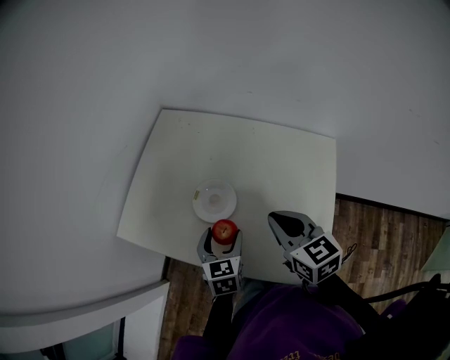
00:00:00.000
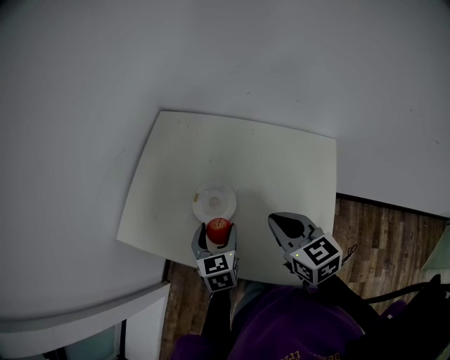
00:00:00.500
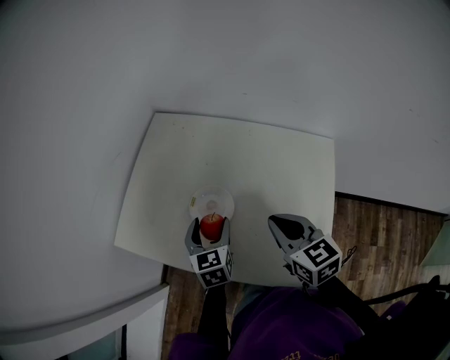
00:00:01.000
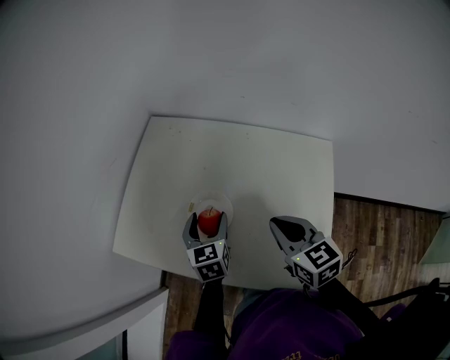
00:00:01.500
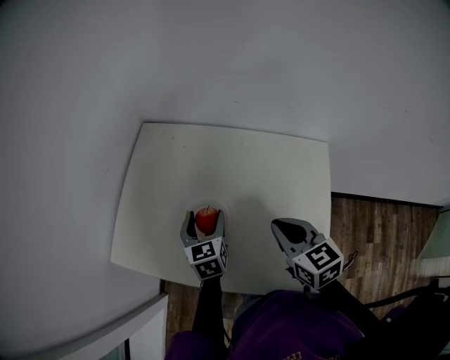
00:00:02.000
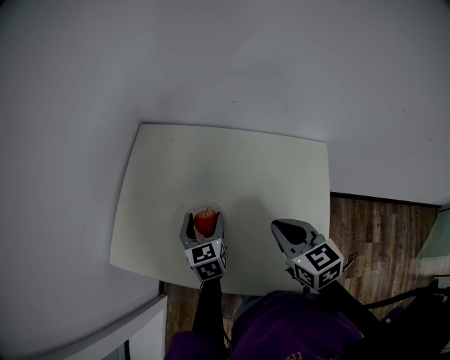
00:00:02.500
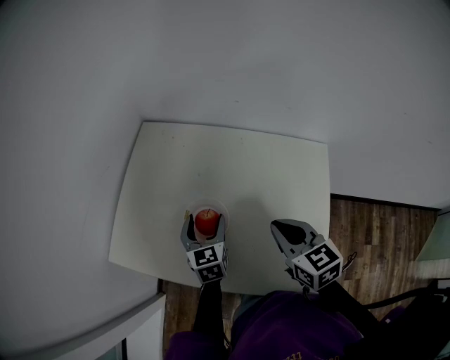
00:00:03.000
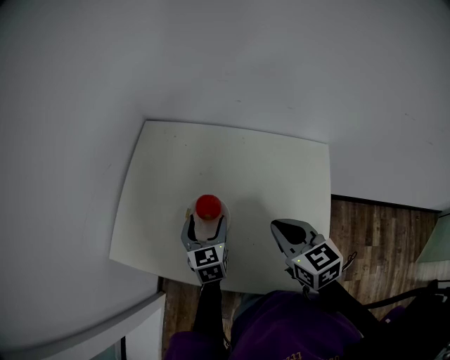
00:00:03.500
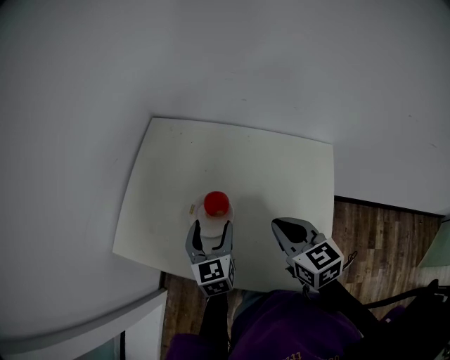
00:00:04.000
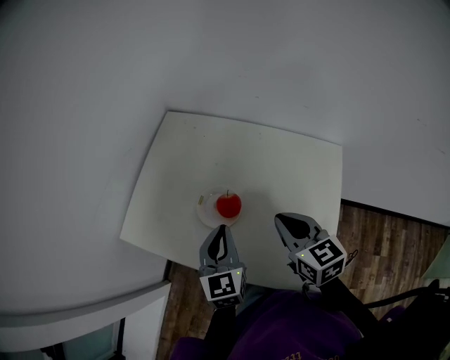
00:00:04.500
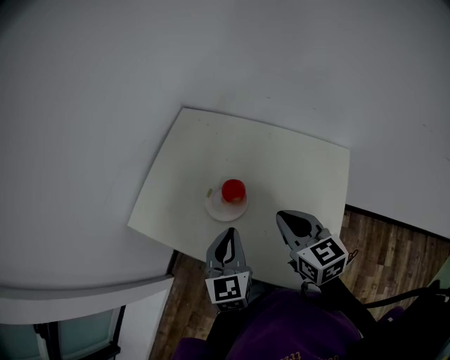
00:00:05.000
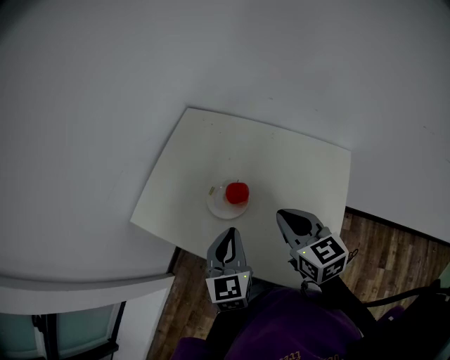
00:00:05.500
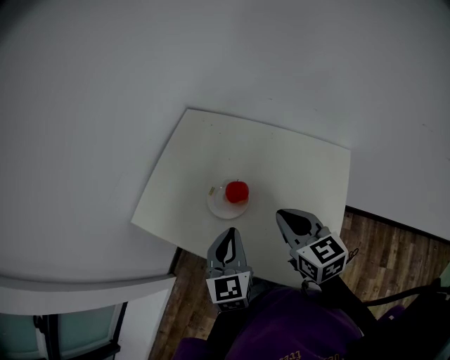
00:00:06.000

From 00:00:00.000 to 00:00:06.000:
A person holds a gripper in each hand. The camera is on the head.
From 00:00:00.000 to 00:00:02.000: The left gripper moves forward, roughly 10 cm.
From 00:00:02.000 to 00:00:04.000: The left gripper is displaced backward by about 5 cm.
From 00:00:04.000 to 00:00:06.000: The left gripper goes roughly 10 cm backward and upward, and closes its fingers.

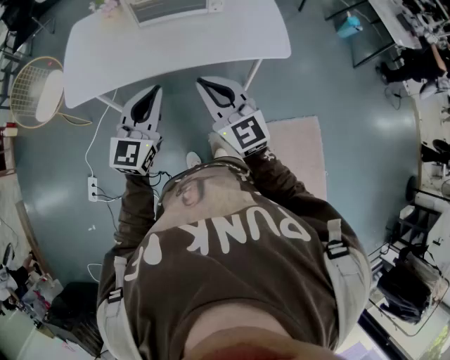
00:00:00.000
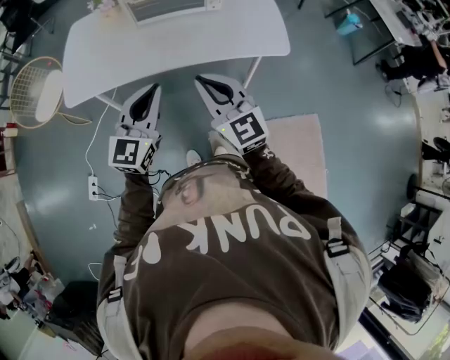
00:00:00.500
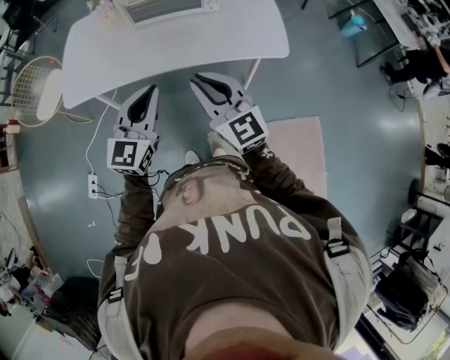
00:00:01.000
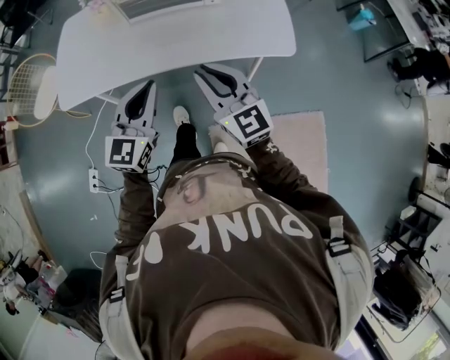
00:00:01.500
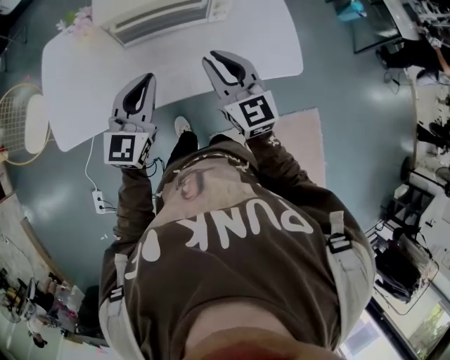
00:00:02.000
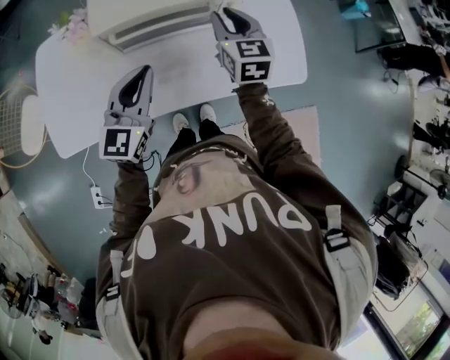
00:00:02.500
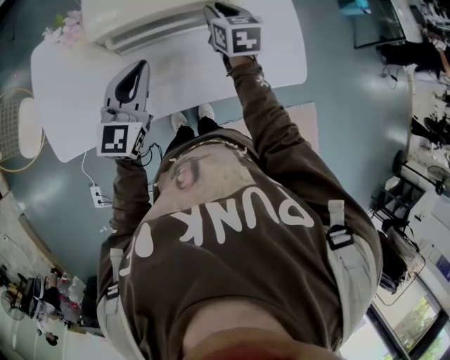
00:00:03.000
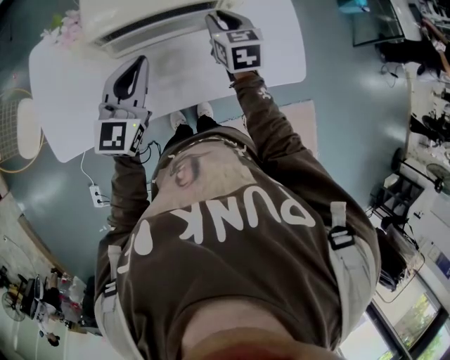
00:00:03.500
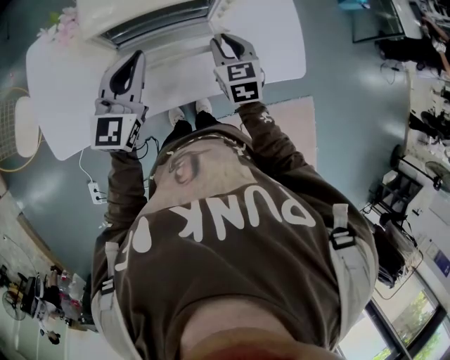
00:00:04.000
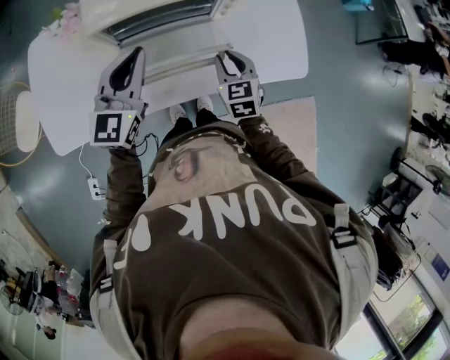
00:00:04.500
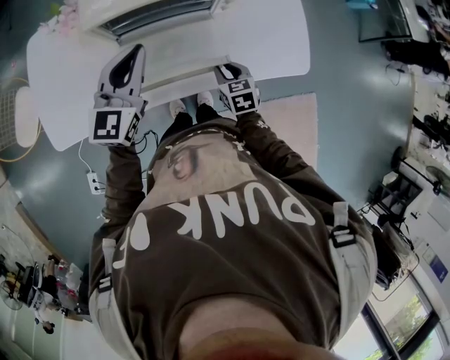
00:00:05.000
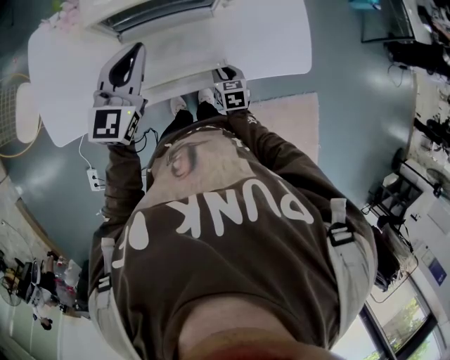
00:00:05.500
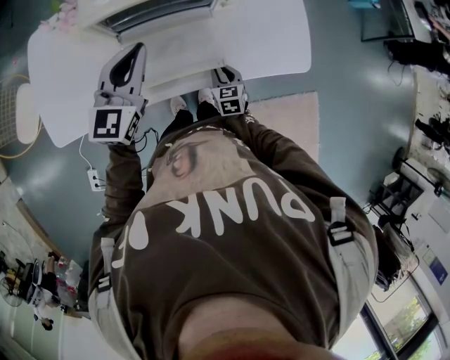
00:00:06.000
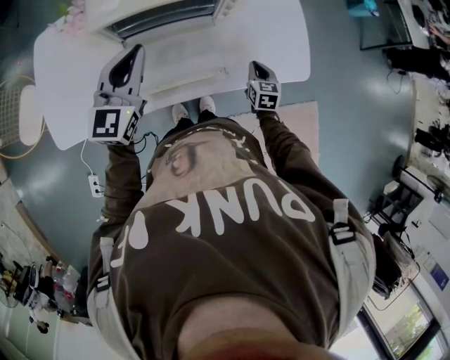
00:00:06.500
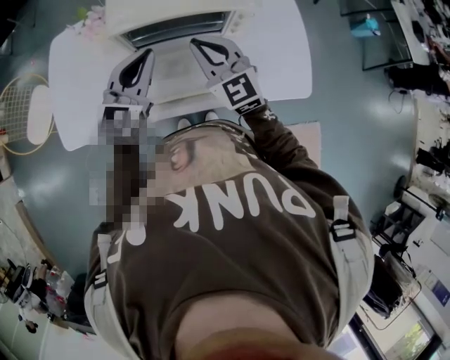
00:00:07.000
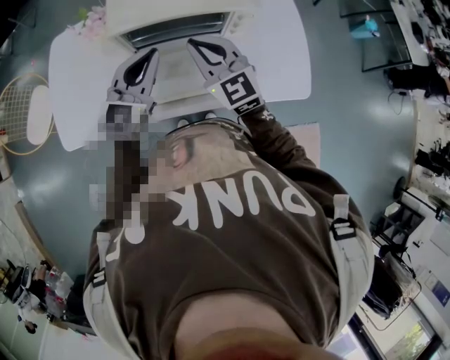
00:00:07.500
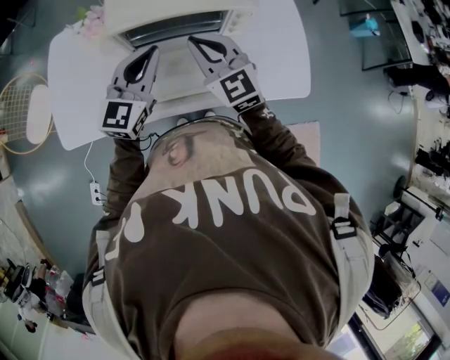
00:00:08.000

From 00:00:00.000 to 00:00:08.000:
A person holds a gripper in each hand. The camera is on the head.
From 00:00:00.000 to 00:00:02.000: The two grippers go approximately 25 cm forward.
From 00:00:02.000 to 00:00:04.000: The left gripper heads forward, covering some 10 cm. The right gripper heads forward and downward, covering roughly 20 cm, and changes its angle by about 30 degrees.
From 00:00:04.000 to 00:00:06.000: The right gripper shifts approximately 25 cm downward and backward.
From 00:00:06.000 to 00:00:08.000: The right gripper moves upward, approximately 30 cm, and tips its fingers upward by approximately 30 degrees.

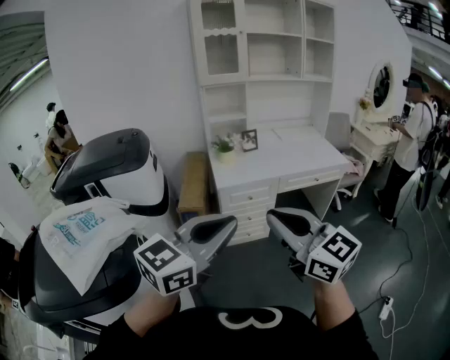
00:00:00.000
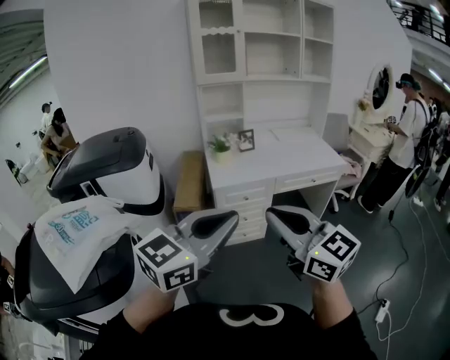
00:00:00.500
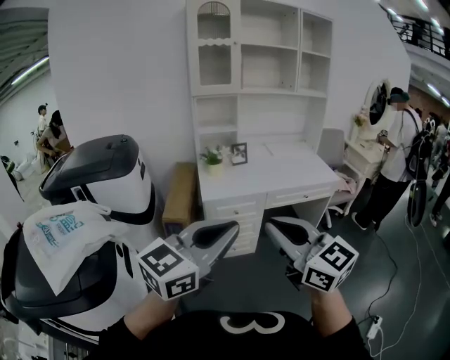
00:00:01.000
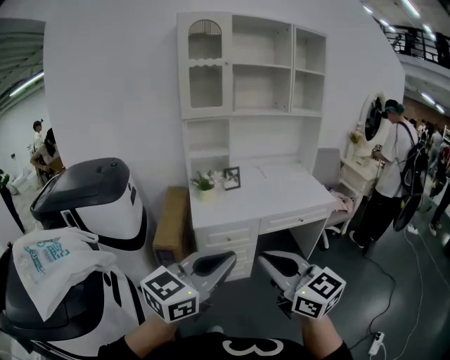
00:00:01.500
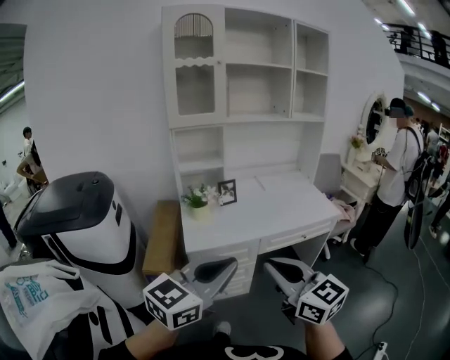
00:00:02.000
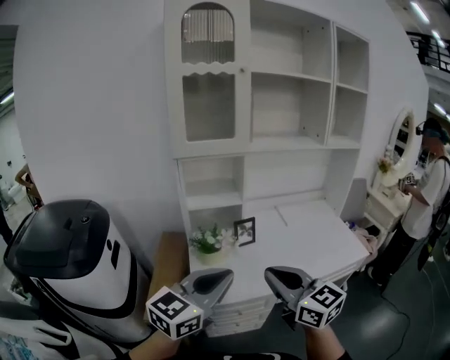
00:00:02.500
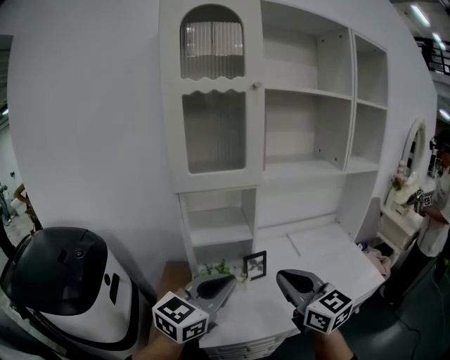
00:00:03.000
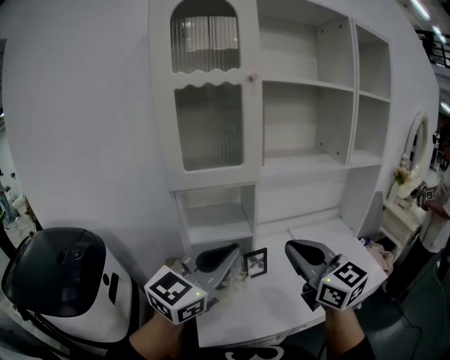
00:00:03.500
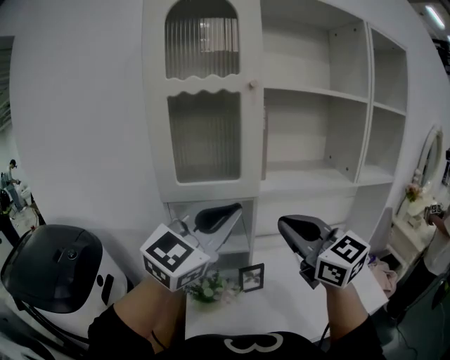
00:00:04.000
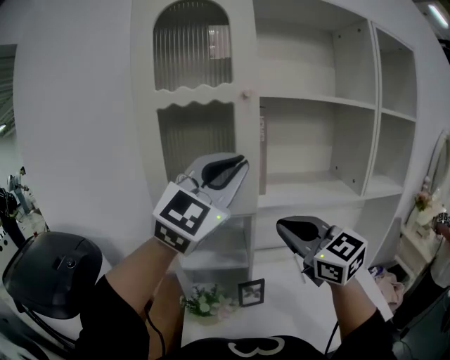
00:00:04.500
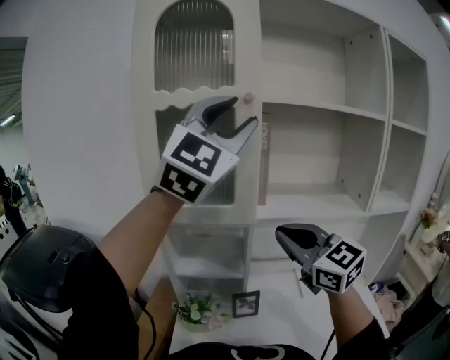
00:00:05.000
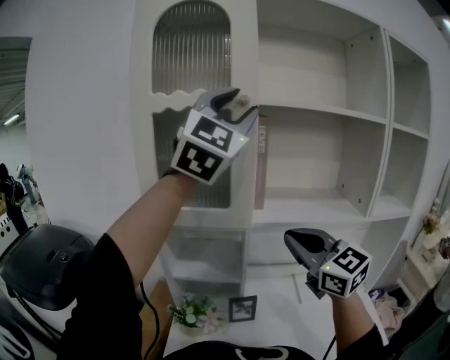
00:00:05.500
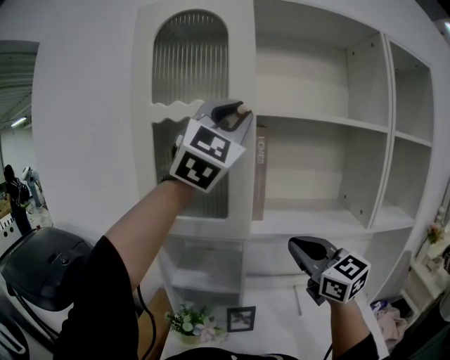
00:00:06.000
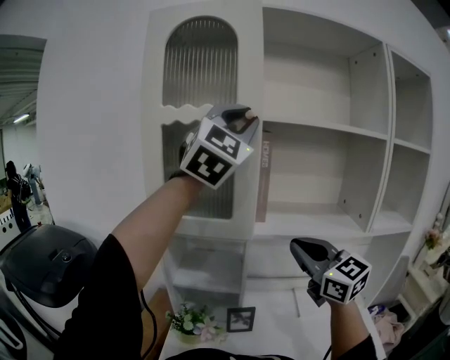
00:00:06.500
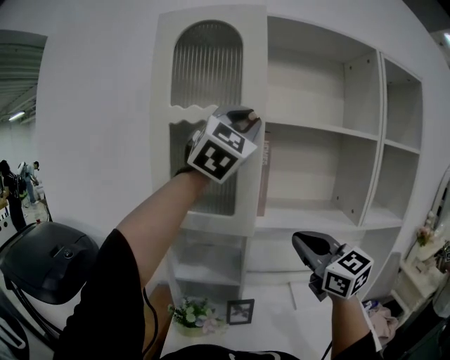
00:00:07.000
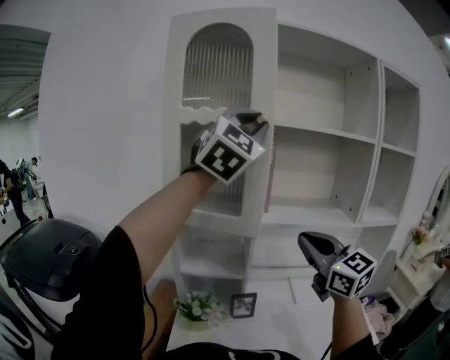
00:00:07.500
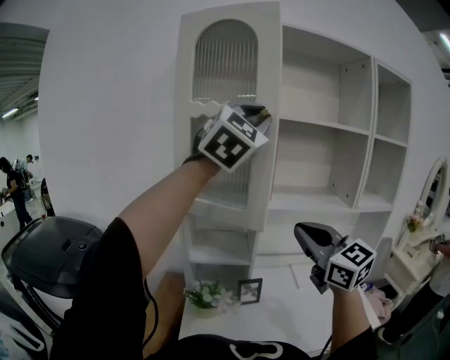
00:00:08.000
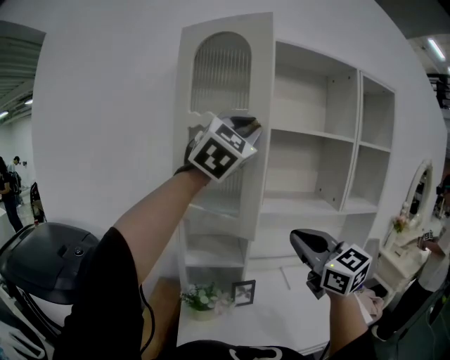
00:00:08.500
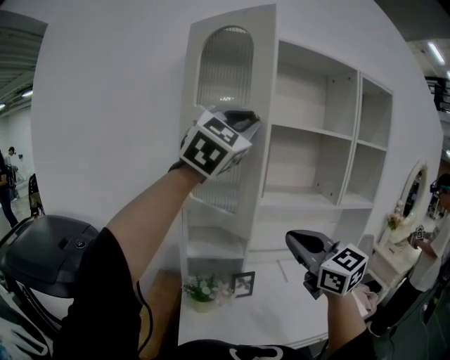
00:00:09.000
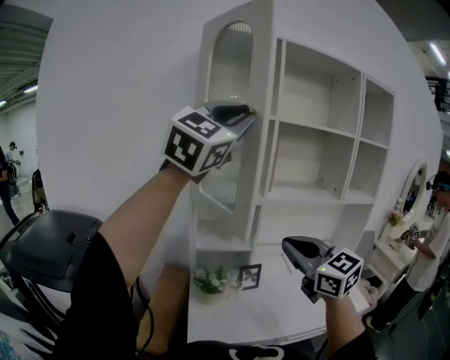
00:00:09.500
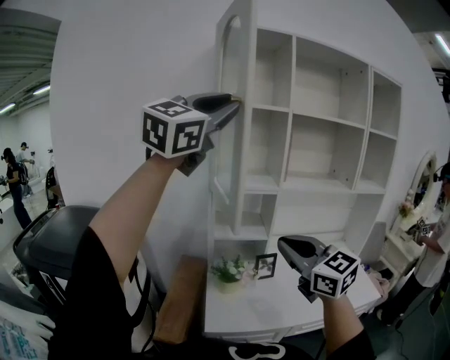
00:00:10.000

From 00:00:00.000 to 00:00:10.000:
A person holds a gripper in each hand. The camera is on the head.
From 00:00:00.000 to 00:00:02.000: Both grippers move forward, approximately 25 cm.
From 00:00:02.000 to 00:00:04.000: The two grippers travel together, forward, some 60 cm. The left gripper rotates roughly 30 degrees.
From 00:00:04.000 to 00:00:06.000: The right gripper heads forward and to the right, covering about 15 cm. The left gripper heads upward and forward, covering about 30 cm, swivels about 40 degrees, and opens, then closes once more.
From 00:00:06.000 to 00:00:08.000: The right gripper goes about 15 cm backward and to the left. The left gripper travels backward by about 10 cm.
From 00:00:08.000 to 00:00:10.000: The right gripper moves backward, to the left and downward, approximately 20 cm, while the left gripper heads to the left and backward, covering approximately 25 cm, and rotates about 30 degrees.

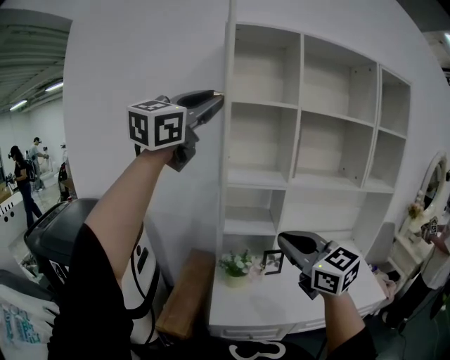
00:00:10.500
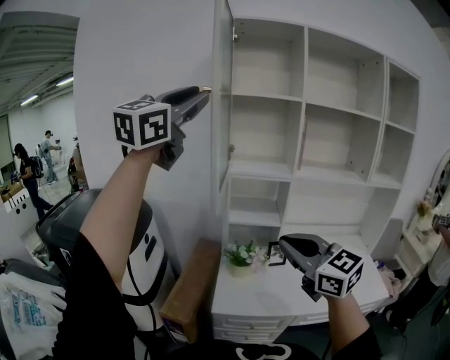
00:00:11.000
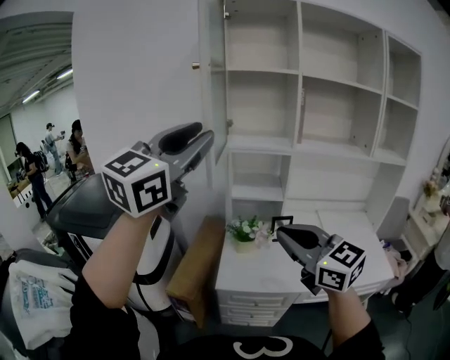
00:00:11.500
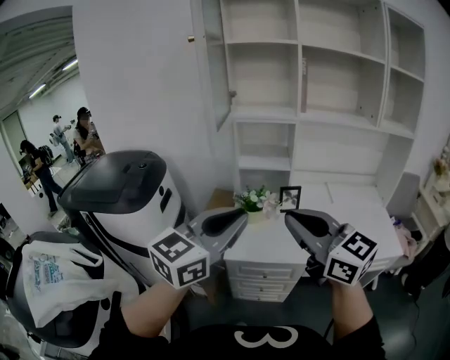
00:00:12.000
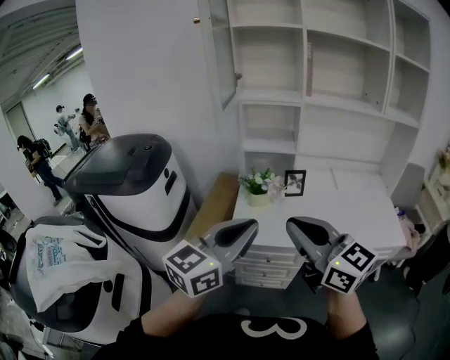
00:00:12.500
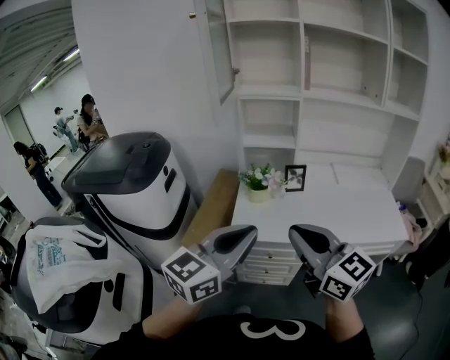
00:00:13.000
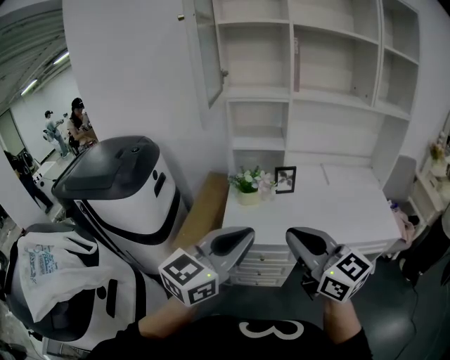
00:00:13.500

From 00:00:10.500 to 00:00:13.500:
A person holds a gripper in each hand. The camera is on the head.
From 00:00:10.500 to 00:00:12.000: The left gripper goes about 40 cm downward and backward, and rotates approximately 30 degrees, while the right gripper travels backward by roughly 15 cm.
From 00:00:12.000 to 00:00:13.500: The left gripper moves downward and backward, about 10 cm, while the right gripper shifts approximately 10 cm downward.
